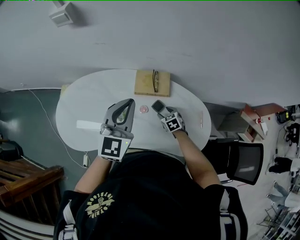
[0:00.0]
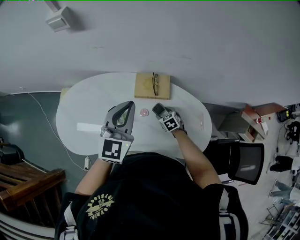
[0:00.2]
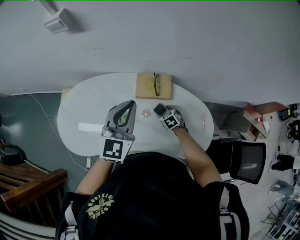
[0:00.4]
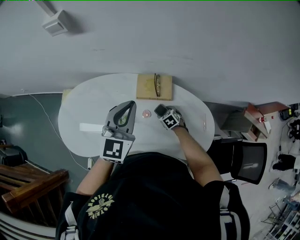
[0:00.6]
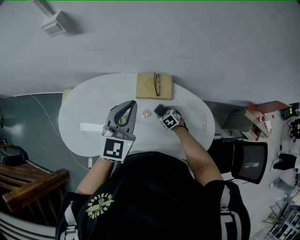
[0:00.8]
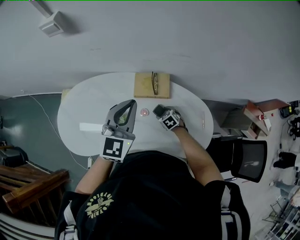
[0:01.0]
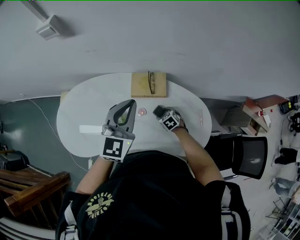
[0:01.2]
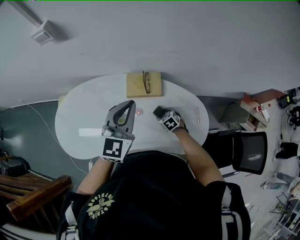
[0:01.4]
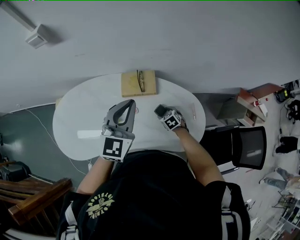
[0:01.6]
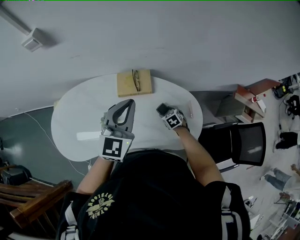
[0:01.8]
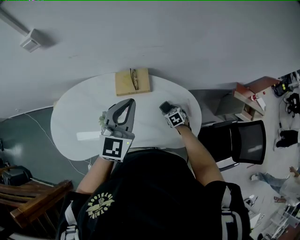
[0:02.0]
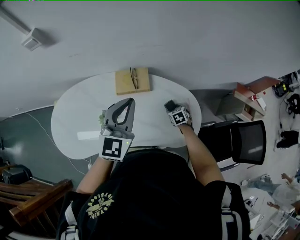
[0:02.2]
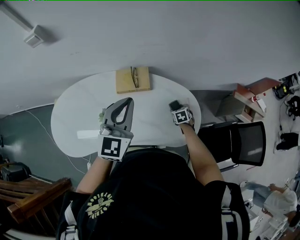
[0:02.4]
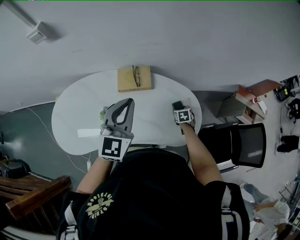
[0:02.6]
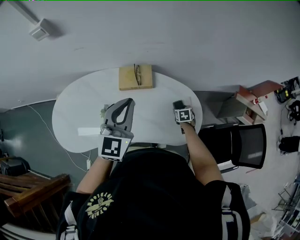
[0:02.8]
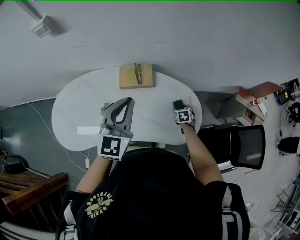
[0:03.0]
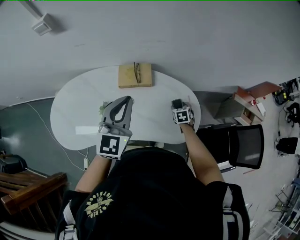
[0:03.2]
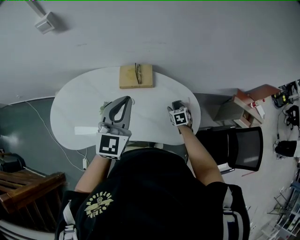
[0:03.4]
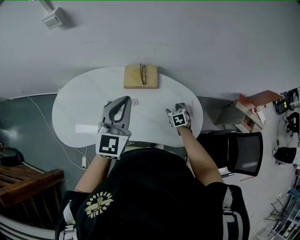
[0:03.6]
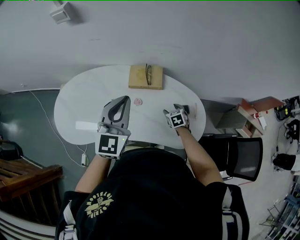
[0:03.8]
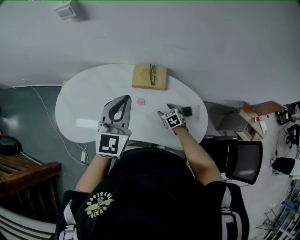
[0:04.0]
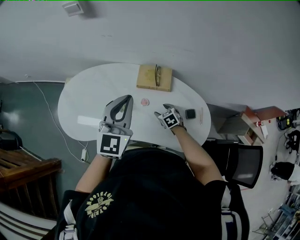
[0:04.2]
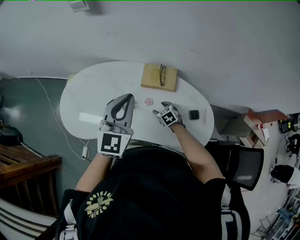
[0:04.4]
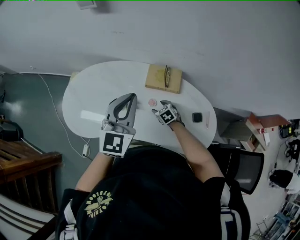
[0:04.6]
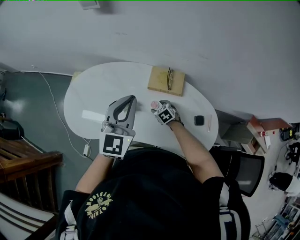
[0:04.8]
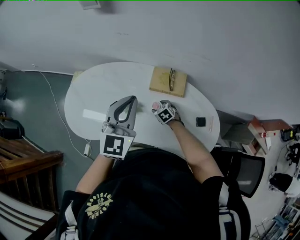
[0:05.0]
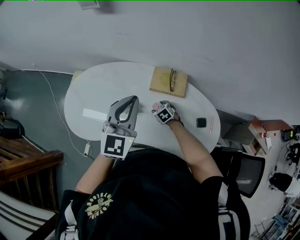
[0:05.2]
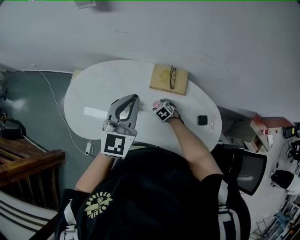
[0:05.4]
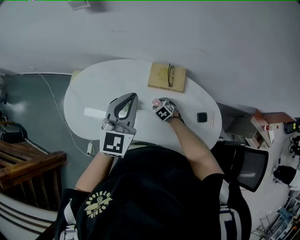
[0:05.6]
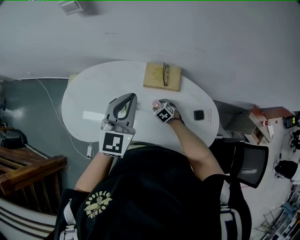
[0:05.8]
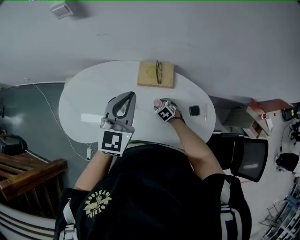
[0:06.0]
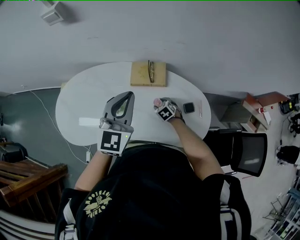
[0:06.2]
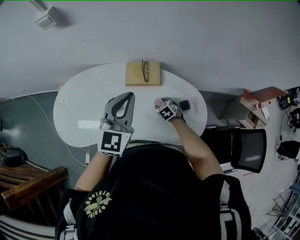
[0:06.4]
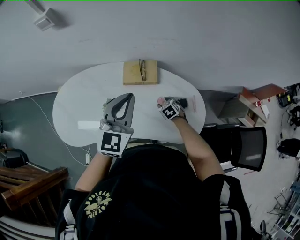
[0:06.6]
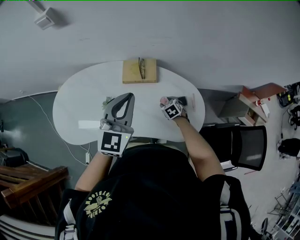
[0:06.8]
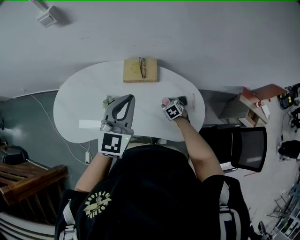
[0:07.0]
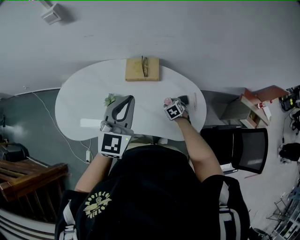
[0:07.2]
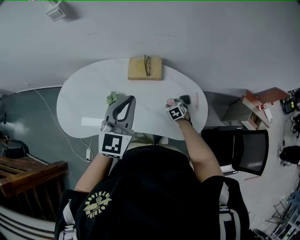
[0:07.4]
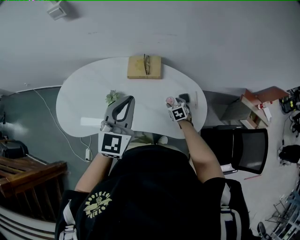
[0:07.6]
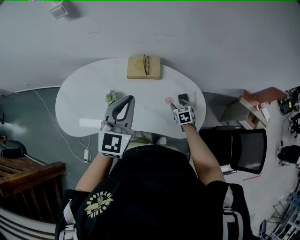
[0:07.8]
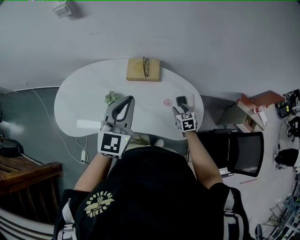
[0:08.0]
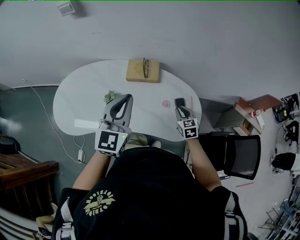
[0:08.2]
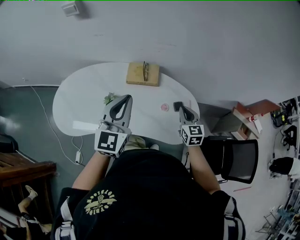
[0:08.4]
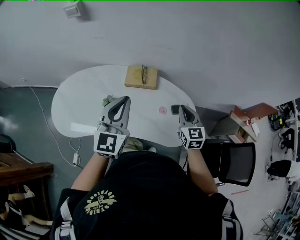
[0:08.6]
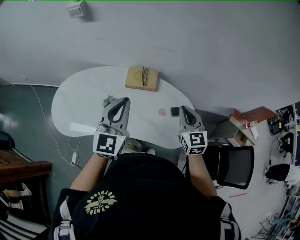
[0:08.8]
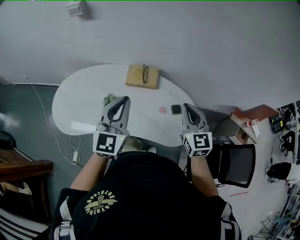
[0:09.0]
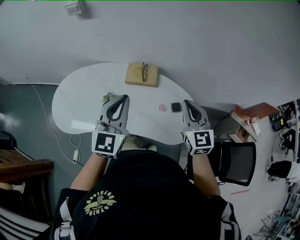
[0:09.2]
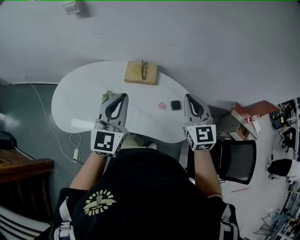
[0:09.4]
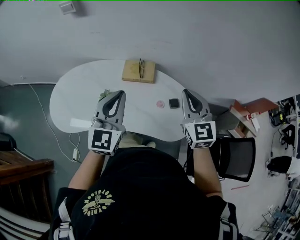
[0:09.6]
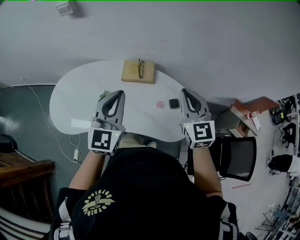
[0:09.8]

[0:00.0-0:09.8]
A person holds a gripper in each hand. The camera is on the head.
0:00.0 to 0:01.4: The left gripper moves some 5 cm.
0:01.4 to 0:02.8: The left gripper heads backward and to the right, covering approximately 10 cm; the right gripper heads to the right, covering approximately 20 cm, and rotates about 30 degrees.
0:02.8 to 0:04.2: The left gripper heads to the left, covering roughly 10 cm. Meanwhile the right gripper goes some 25 cm to the left, and rotates roughly 40 degrees.
0:04.2 to 0:05.6: The left gripper changes place by about 5 cm; the right gripper heads to the left and forward, covering approximately 10 cm.
0:05.6 to 0:07.0: The left gripper is displaced to the right and backward by about 15 cm, while the right gripper moves to the right and backward, about 20 cm.
0:07.0 to 0:08.4: The right gripper travels upward by about 20 cm, points its fingers some 40 degrees further upward, and closes up; the left gripper goes some 5 cm backward.
0:08.4 to 0:09.8: The right gripper shifts roughly 20 cm upward.

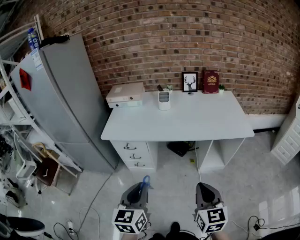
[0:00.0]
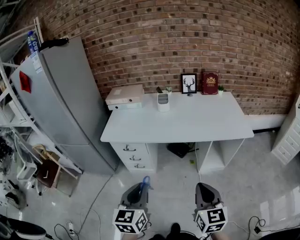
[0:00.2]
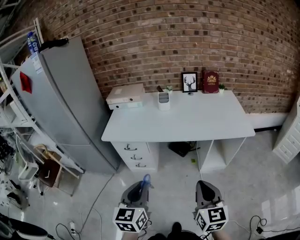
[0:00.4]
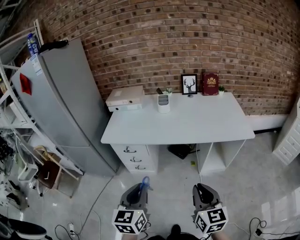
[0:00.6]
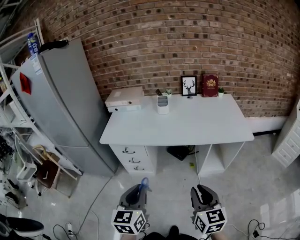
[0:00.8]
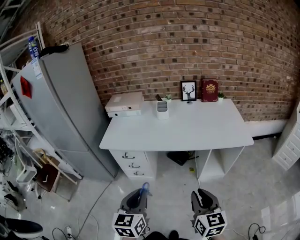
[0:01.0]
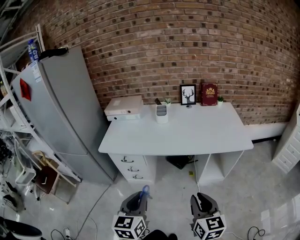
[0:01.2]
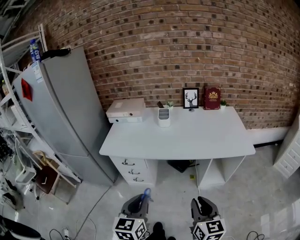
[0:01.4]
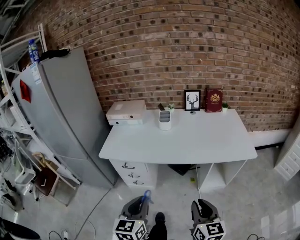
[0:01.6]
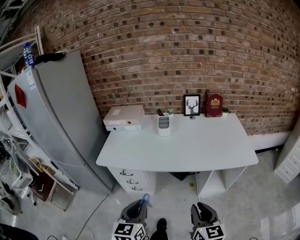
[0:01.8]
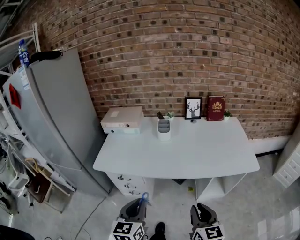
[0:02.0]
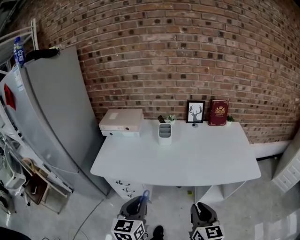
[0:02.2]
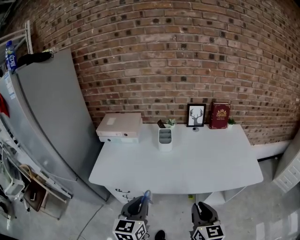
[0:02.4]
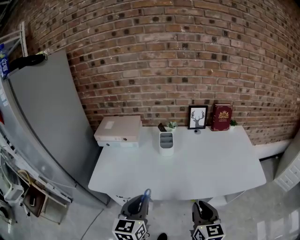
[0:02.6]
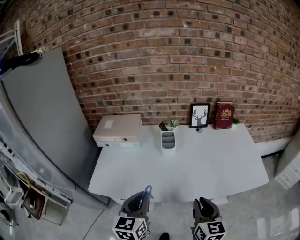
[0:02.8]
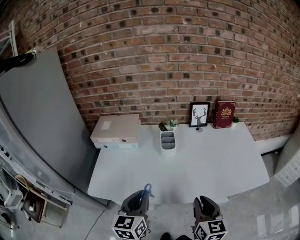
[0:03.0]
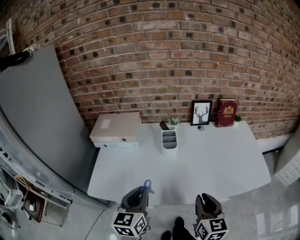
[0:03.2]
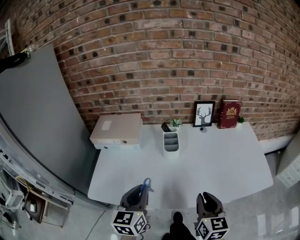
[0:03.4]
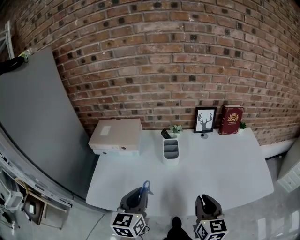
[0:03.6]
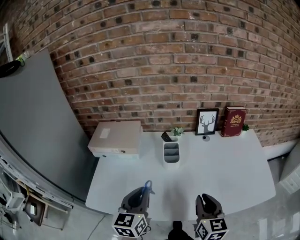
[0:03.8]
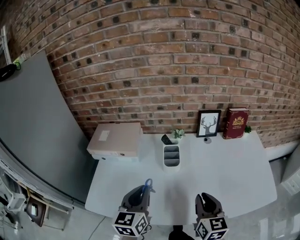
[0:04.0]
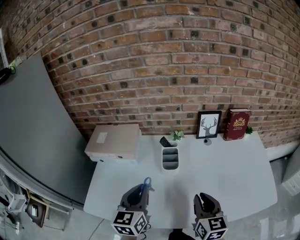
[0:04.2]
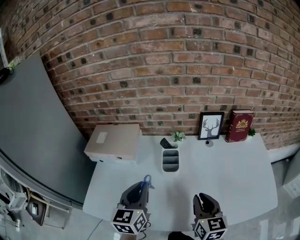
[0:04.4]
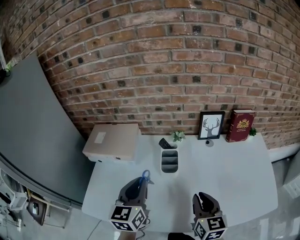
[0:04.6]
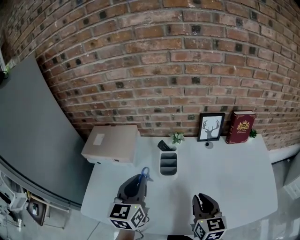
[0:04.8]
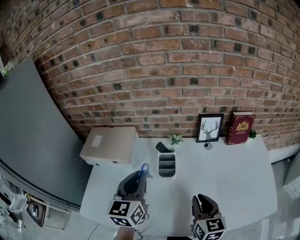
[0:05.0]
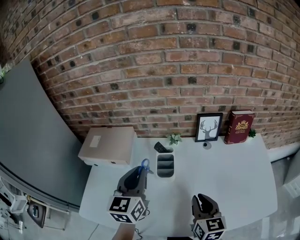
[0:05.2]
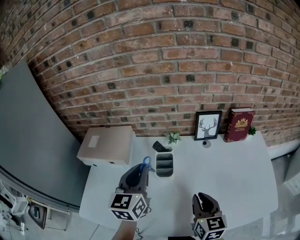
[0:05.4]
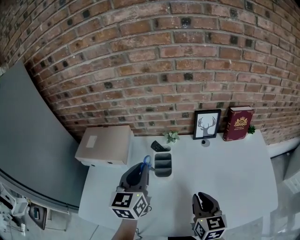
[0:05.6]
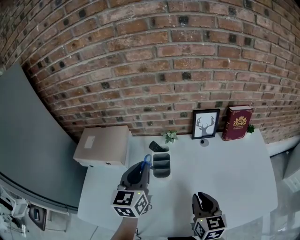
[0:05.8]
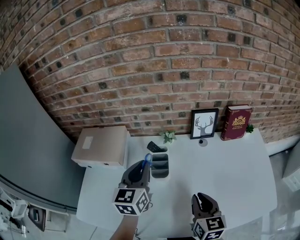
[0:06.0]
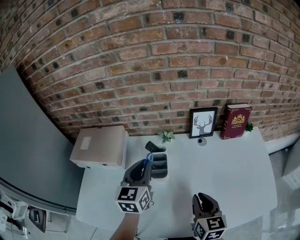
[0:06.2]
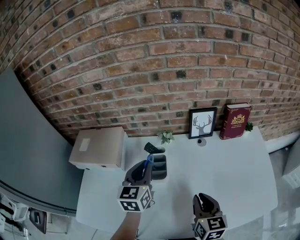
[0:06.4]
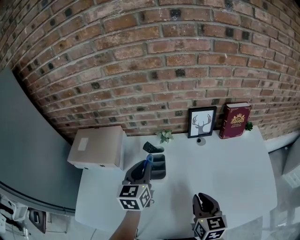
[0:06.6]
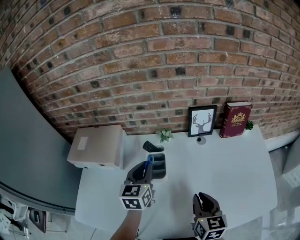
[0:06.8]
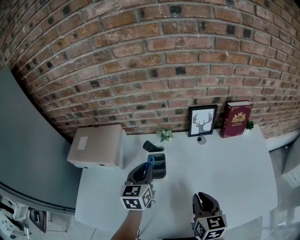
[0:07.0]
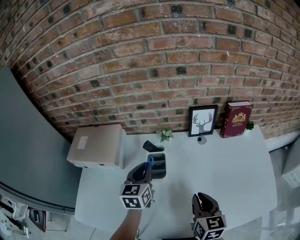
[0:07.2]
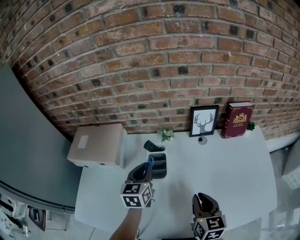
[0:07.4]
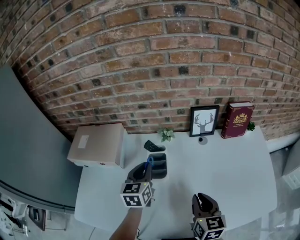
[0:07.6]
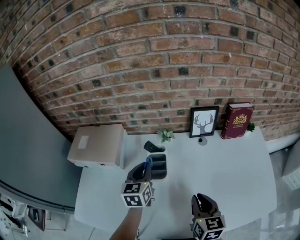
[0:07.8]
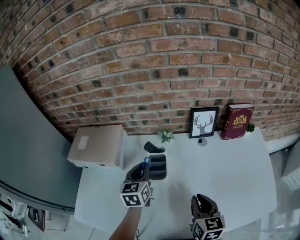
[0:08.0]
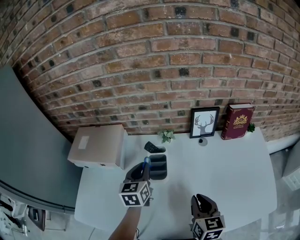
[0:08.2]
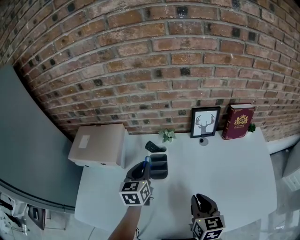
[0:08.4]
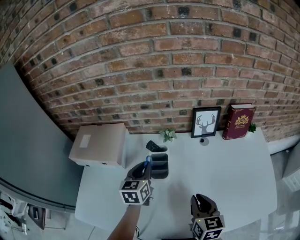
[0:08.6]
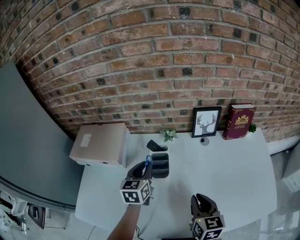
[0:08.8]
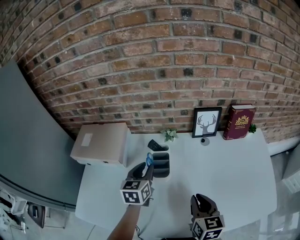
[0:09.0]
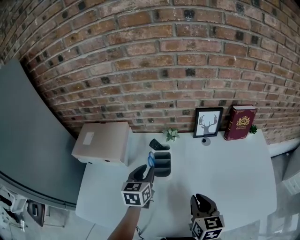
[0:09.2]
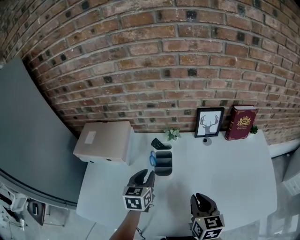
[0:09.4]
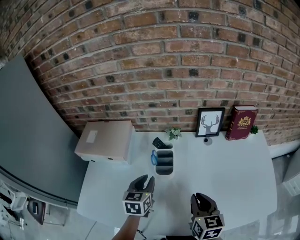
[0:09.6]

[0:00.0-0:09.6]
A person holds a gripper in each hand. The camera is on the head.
0:00.0 to 0:01.6: The grippers both shift forward by some 5 cm.
0:01.6 to 0:03.2: Both grippers move forward, about 35 cm.
0:03.2 to 0:04.8: The grippers both shift forward by roughly 20 cm.
0:04.8 to 0:06.4: The left gripper travels forward and to the right by roughly 15 cm. Meanwhile the right gripper moves roughly 5 cm.
0:06.4 to 0:08.0: The left gripper travels downward by roughly 5 cm.
0:08.0 to 0:09.6: The left gripper travels backward by roughly 10 cm.

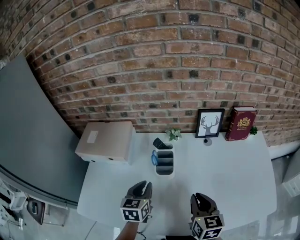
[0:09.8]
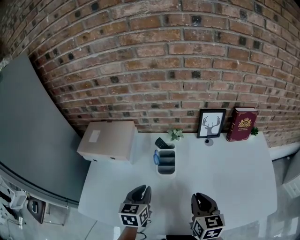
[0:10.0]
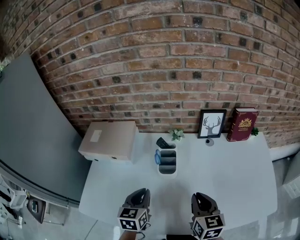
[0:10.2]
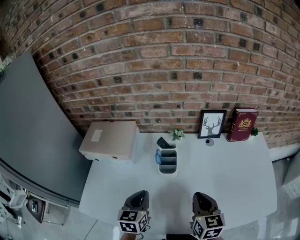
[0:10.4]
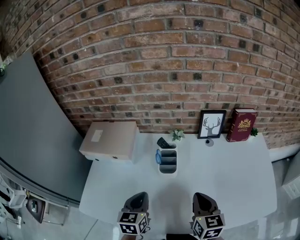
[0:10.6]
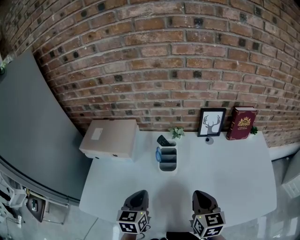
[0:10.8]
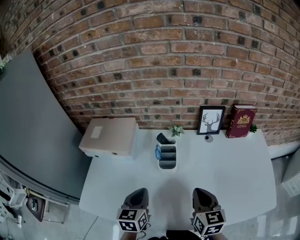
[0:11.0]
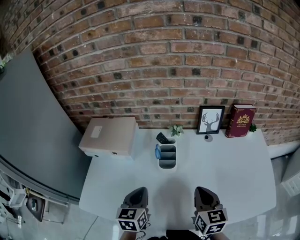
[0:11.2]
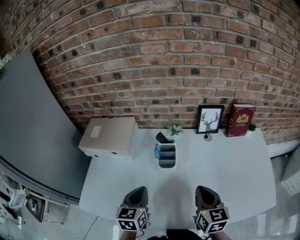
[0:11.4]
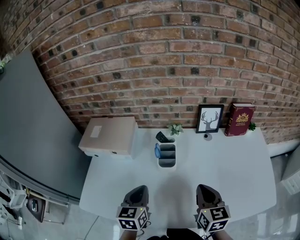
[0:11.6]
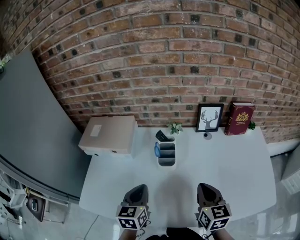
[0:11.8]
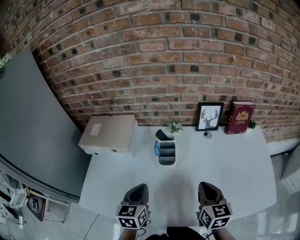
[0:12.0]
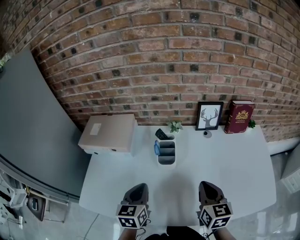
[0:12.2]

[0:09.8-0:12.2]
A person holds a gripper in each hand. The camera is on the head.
0:09.8 to 0:11.0: The left gripper is displaced backward by approximately 5 cm.
0:11.0 to 0:12.2: There are only small adjustments of the grippers.

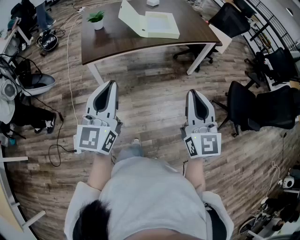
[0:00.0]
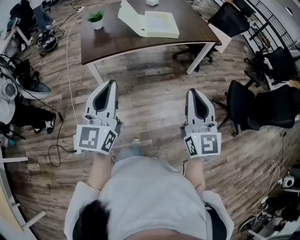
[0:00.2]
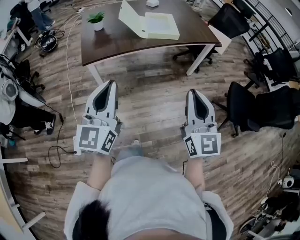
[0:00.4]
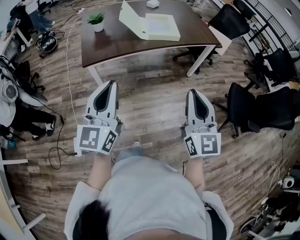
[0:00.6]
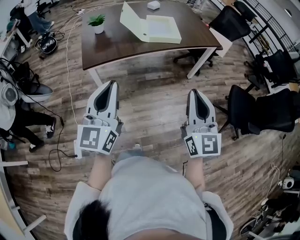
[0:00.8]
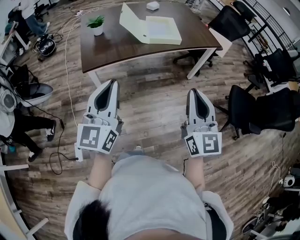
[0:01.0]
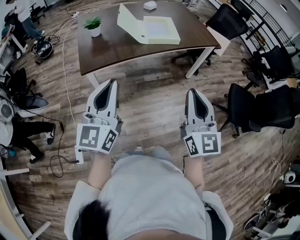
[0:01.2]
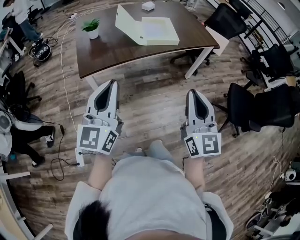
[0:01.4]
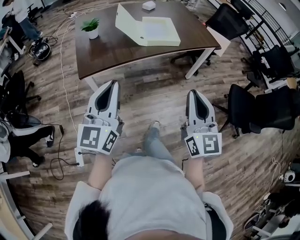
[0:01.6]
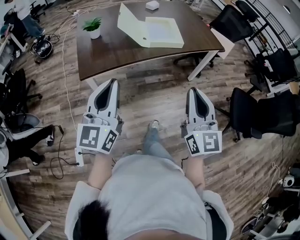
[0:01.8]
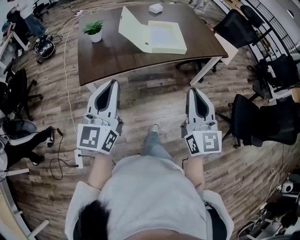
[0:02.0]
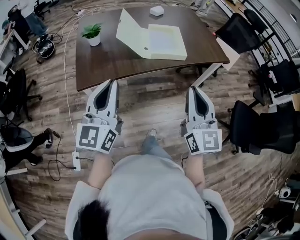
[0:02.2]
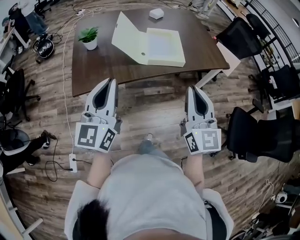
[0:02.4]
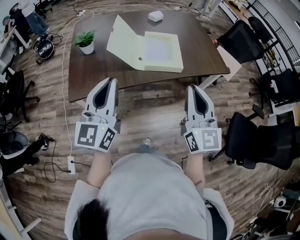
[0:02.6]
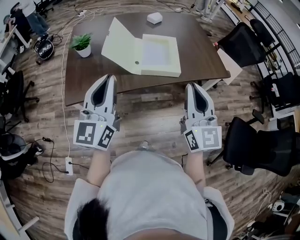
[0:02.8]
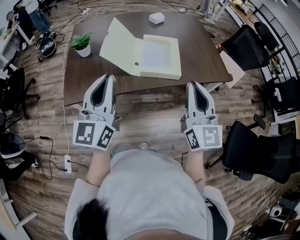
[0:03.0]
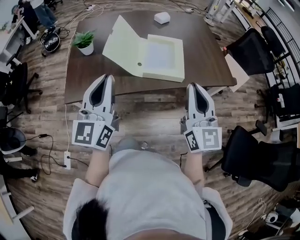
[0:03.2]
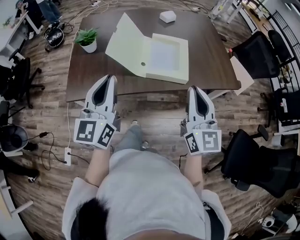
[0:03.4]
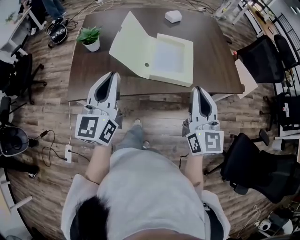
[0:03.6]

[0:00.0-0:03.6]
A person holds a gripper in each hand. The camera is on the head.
0:00.0 to 0:01.8: The grippers both shift forward by roughly 15 cm.
0:01.8 to 0:03.6: The grippers both shift forward by some 30 cm.
